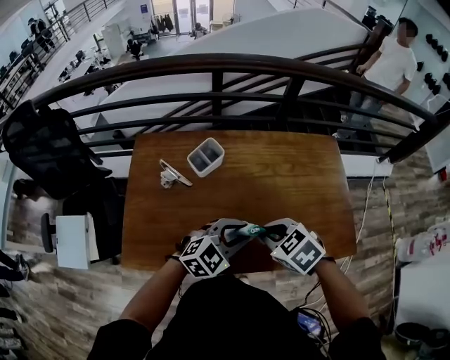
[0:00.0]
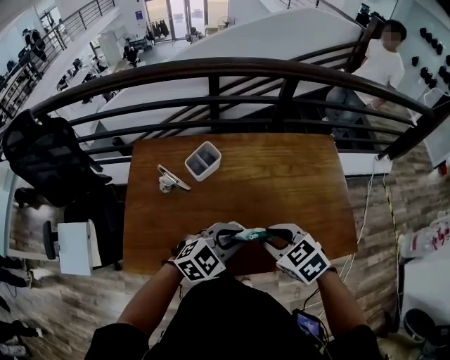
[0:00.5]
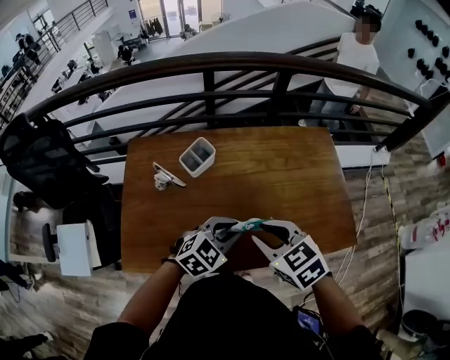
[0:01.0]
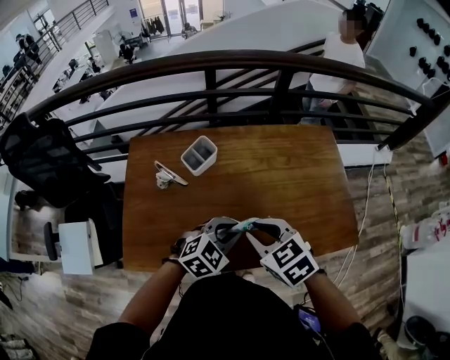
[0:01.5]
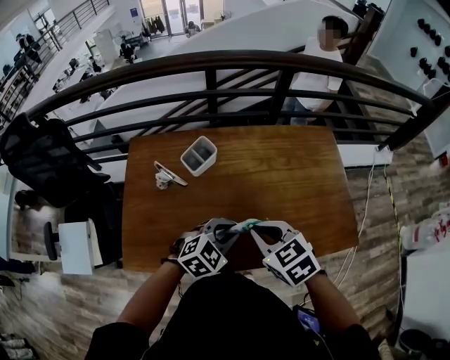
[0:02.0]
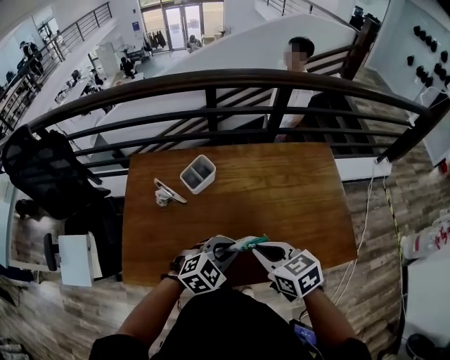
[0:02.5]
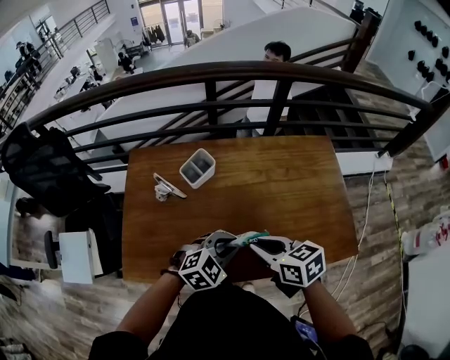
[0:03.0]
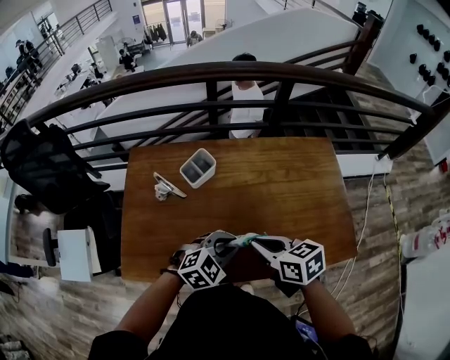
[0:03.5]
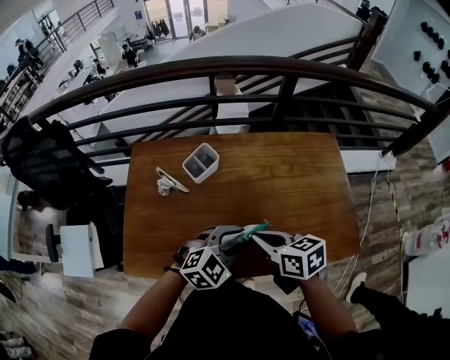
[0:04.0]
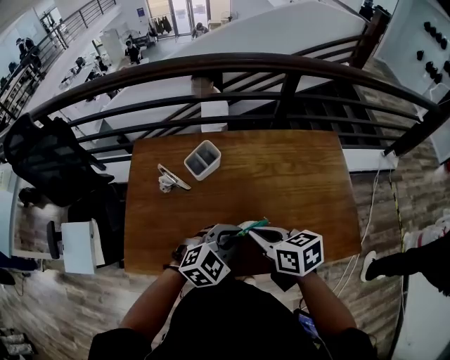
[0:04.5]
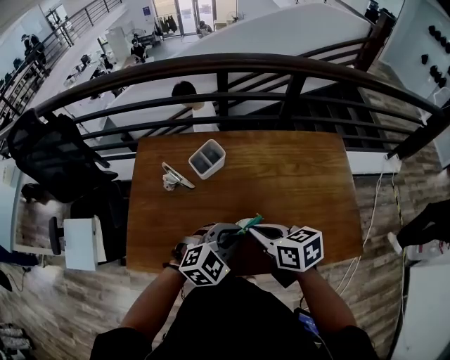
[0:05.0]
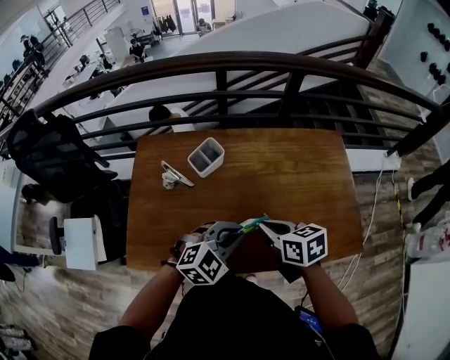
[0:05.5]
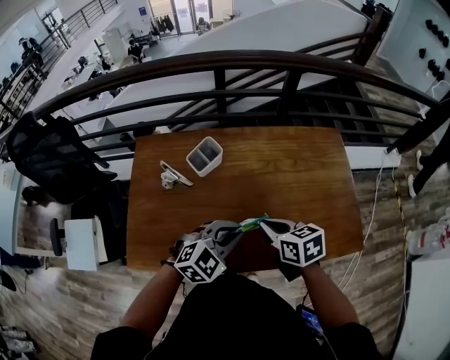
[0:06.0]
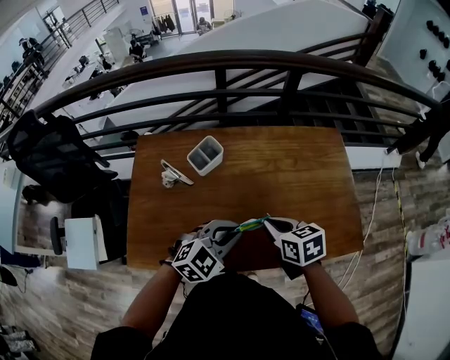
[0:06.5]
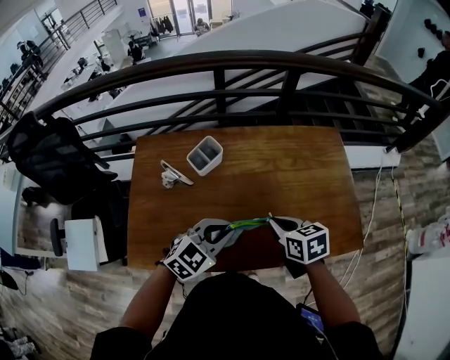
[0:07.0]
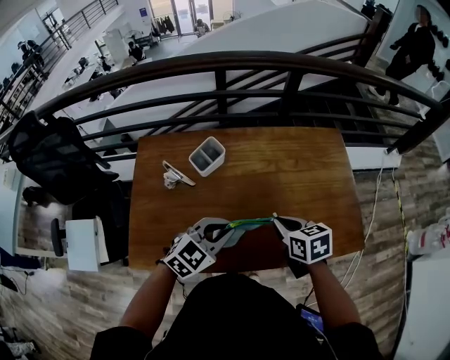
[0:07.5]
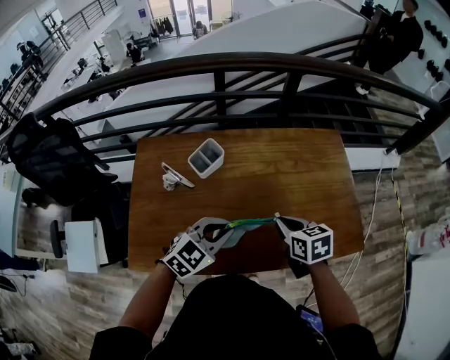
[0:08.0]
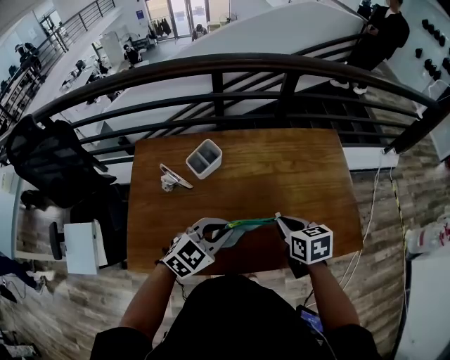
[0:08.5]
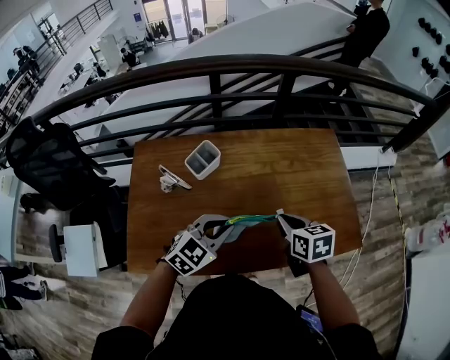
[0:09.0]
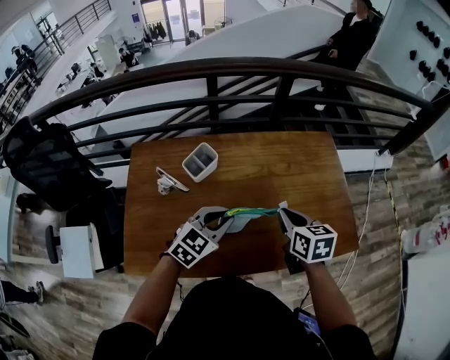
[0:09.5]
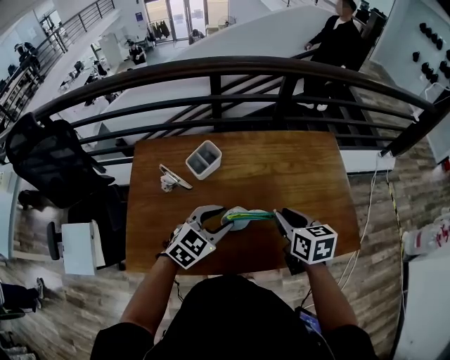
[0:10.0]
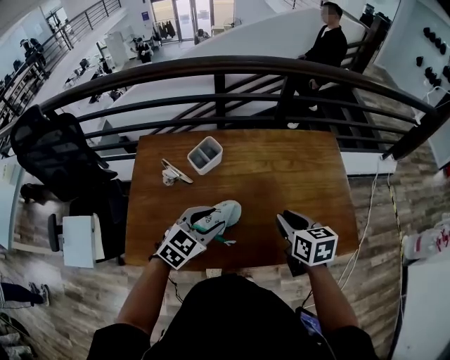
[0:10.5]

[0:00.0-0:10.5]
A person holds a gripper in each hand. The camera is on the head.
0:02.0 to 0:04.0: The right gripper changes its angle by approximately 30 degrees.
0:04.0 to 0:06.5: The right gripper changes place by some 5 cm, while the left gripper closes its fingers.
0:06.5 to 0:08.5: The grippers stay close to where they were, moving slightly.
0:08.5 to 0:10.5: The left gripper opens its fingers.

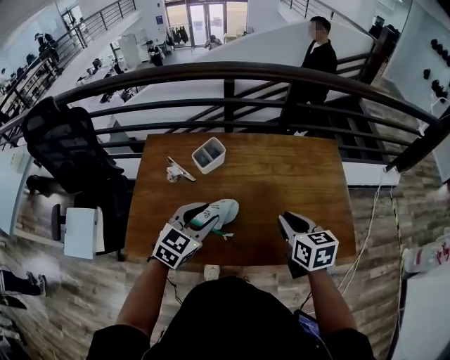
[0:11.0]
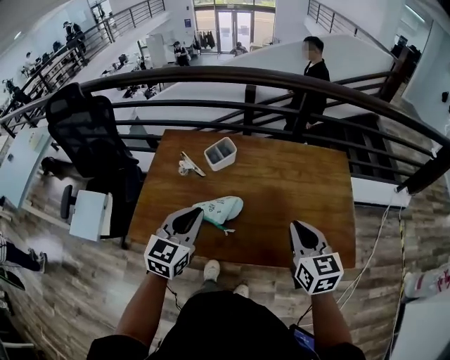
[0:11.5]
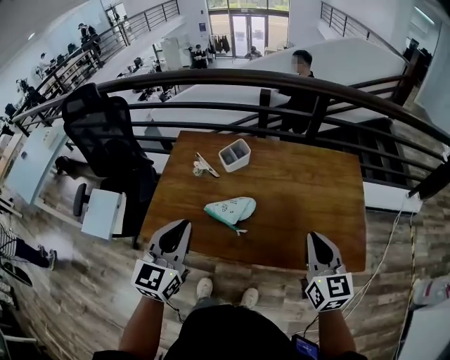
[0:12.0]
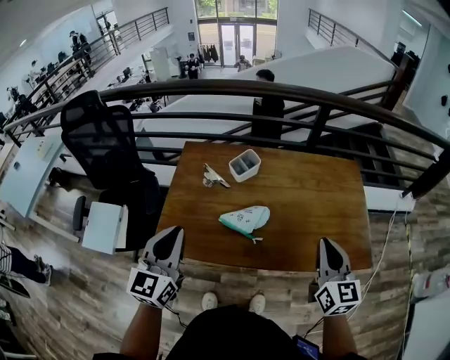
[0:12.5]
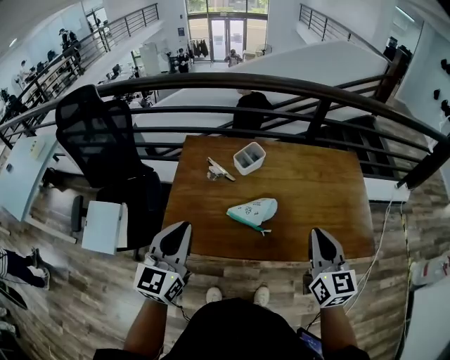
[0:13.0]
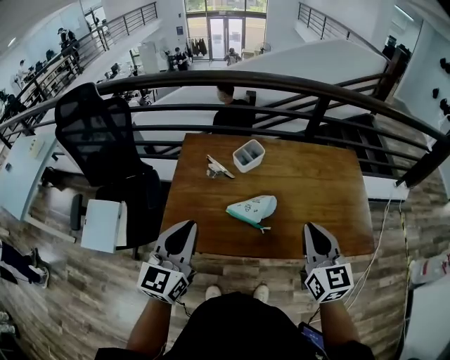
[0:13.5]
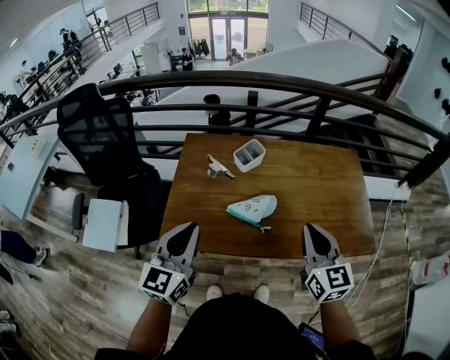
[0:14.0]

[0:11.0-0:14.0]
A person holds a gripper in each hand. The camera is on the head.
0:11.0 to 0:12.5: The left gripper travels to the left, upward and backward by some 25 cm, swivels approximately 40 degrees, and closes its fingers; the right gripper travels backward and upward by about 15 cm, and changes its angle by approximately 30 degrees.
0:12.5 to 0:14.0: The right gripper travels to the left by approximately 10 cm.

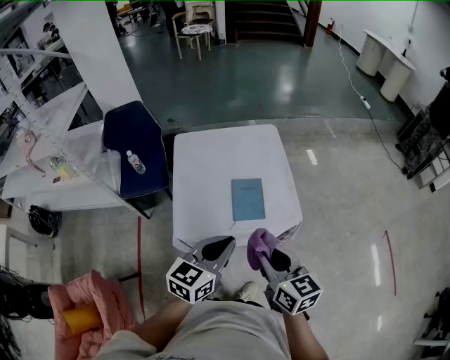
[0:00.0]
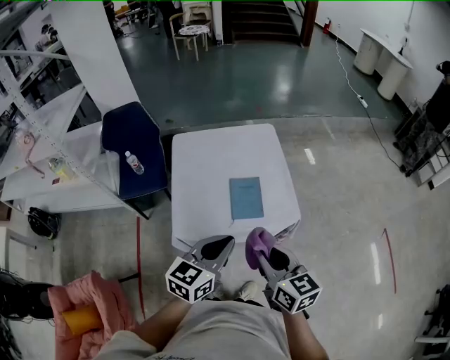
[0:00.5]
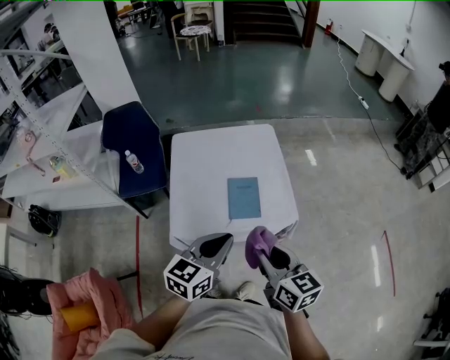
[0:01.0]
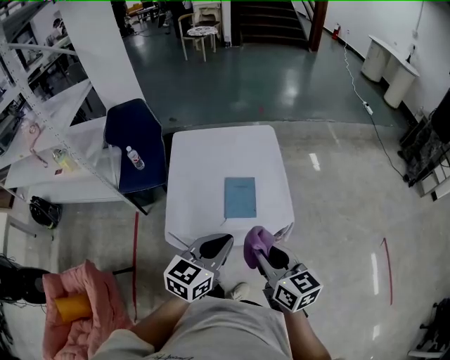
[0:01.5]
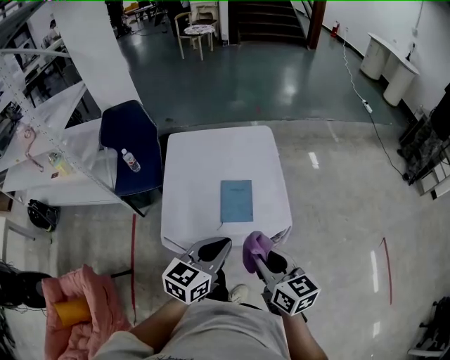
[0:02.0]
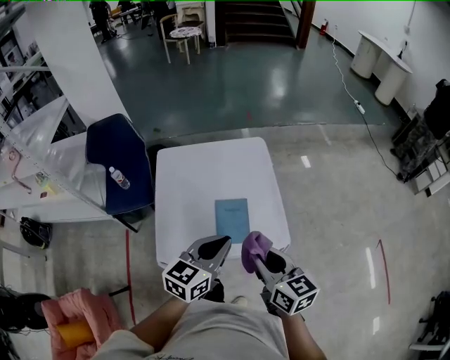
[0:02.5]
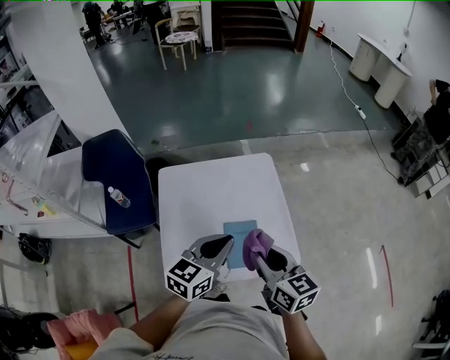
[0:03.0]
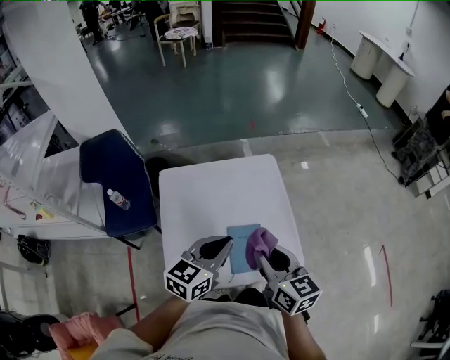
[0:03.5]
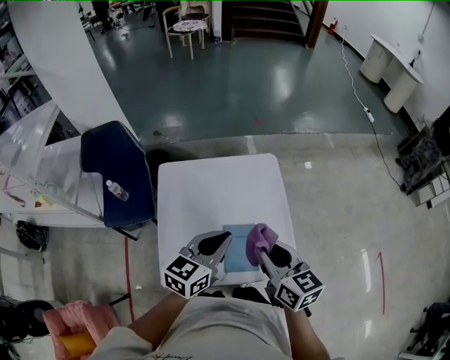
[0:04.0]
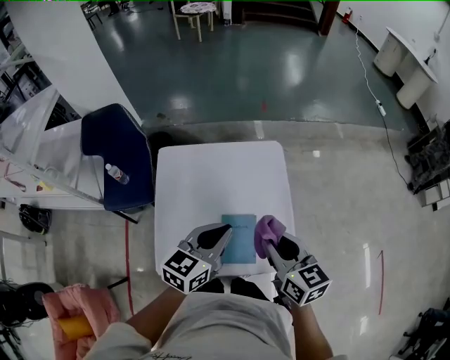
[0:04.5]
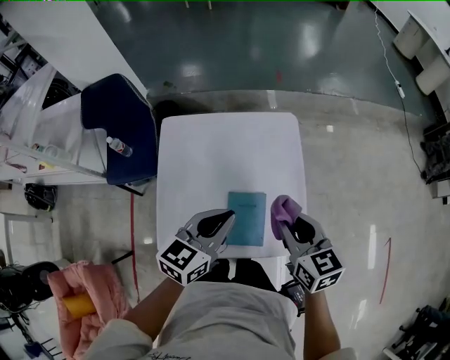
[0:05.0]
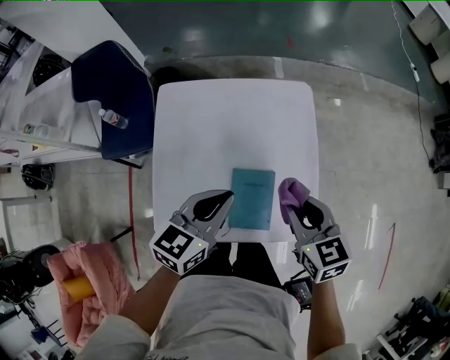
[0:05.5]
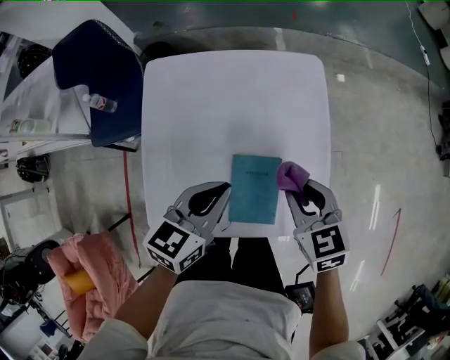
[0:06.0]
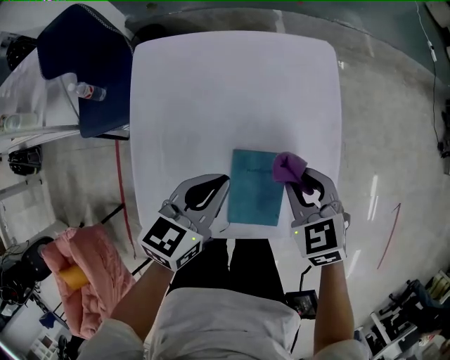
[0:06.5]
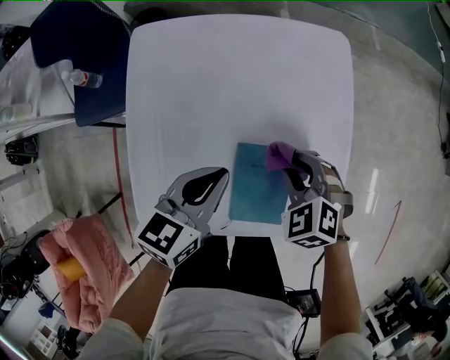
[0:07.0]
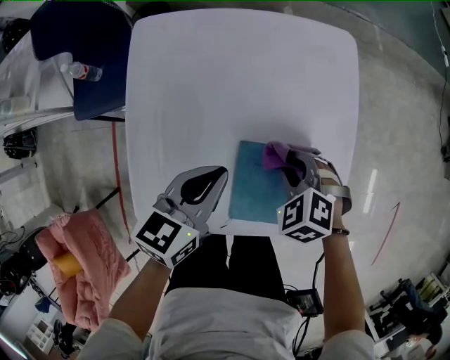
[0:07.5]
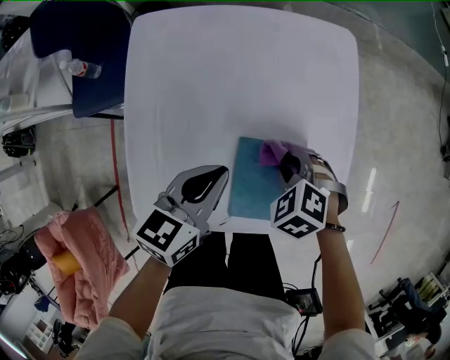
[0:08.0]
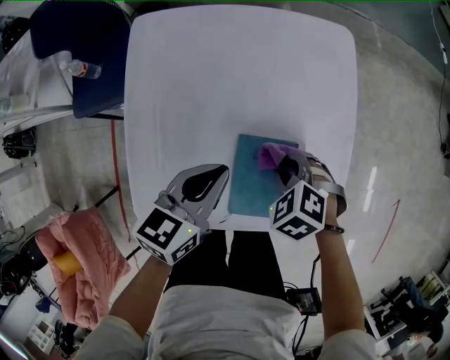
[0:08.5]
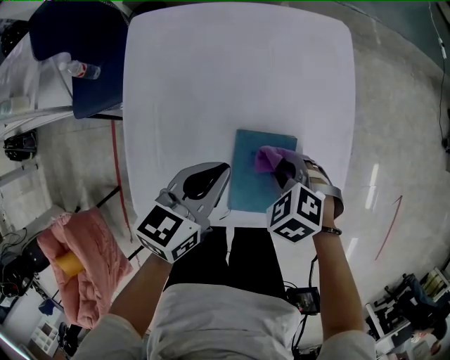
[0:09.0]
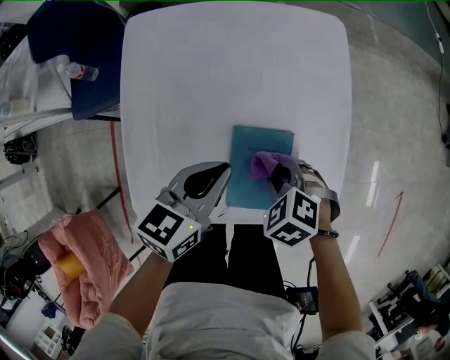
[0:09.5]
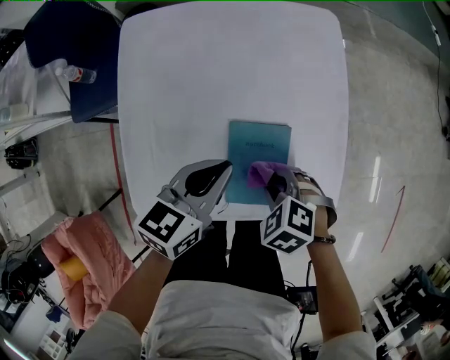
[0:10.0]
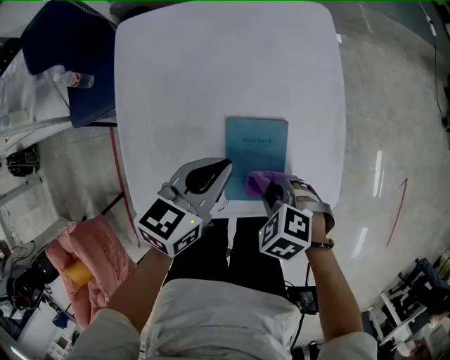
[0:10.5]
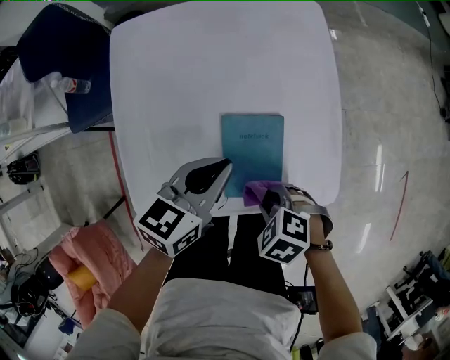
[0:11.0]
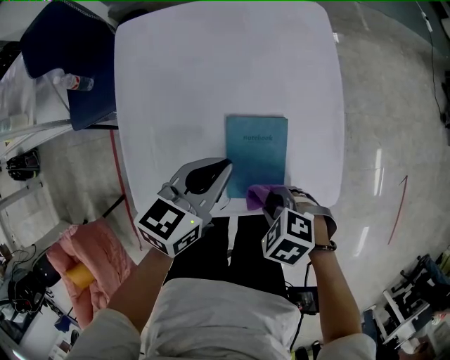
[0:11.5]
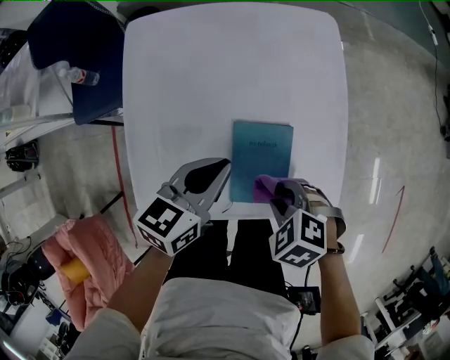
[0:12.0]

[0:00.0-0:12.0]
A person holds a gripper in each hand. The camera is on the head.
0:00.0 to 0:02.0: The grippers both shift to the right by roughly 5 cm.
0:02.0 to 0:04.0: The grippers both shift forward by roughly 25 cm.
0:04.0 to 0:06.0: Both grippers travel together downward, approximately 15 cm. The right gripper rotates approximately 30 degrees.
0:06.0 to 0:08.0: The left gripper moves downward, some 10 cm. The right gripper heads downward, covering roughly 15 cm, and angles its fingers downward, by approximately 30 degrees.
0:08.0 to 0:10.0: The right gripper shifts by about 10 cm.

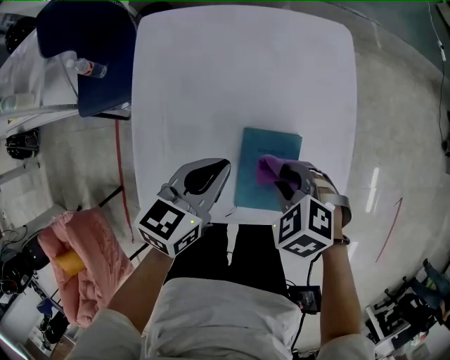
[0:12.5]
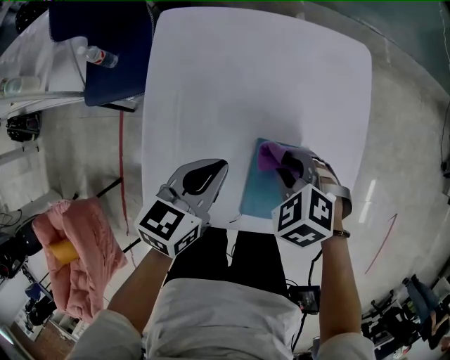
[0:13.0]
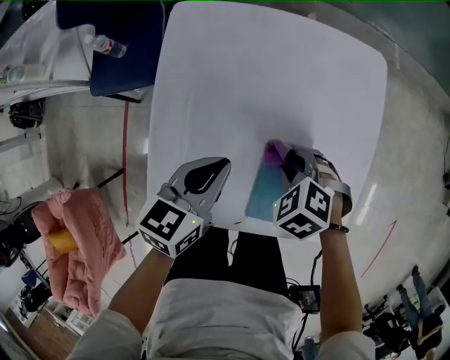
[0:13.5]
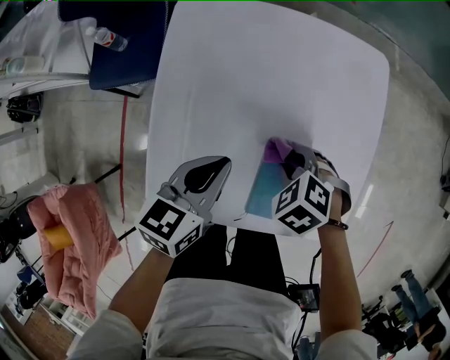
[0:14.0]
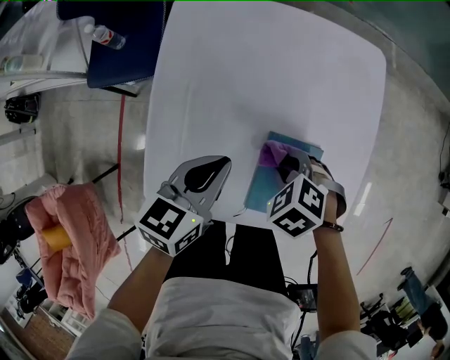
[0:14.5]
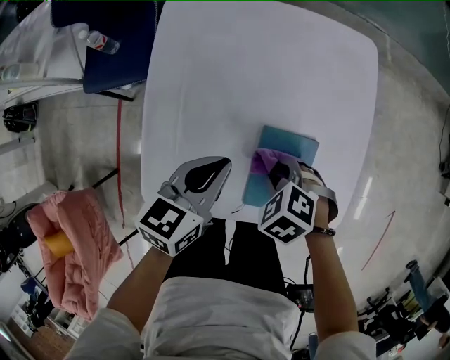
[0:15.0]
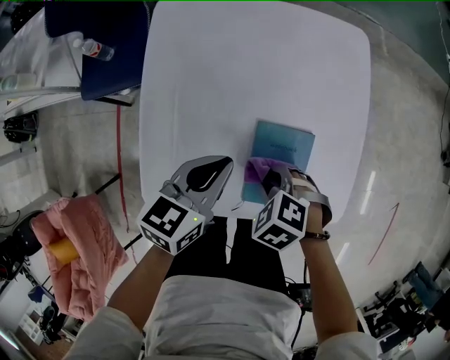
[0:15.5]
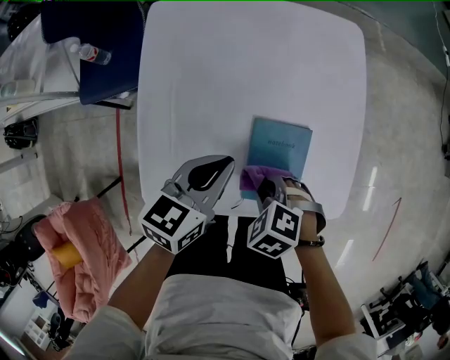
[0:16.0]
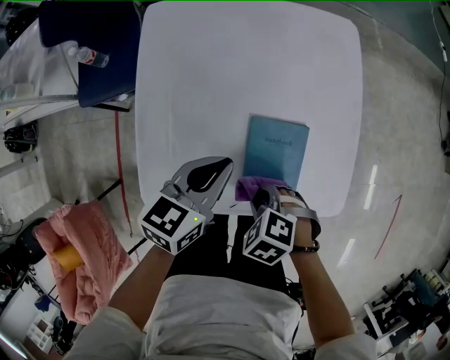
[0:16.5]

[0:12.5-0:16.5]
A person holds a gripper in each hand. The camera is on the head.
0:12.5 to 0:14.5: The right gripper ends up approximately 5 cm from where it was, while the left gripper moves about 5 cm.
0:14.5 to 0:16.5: The right gripper changes place by some 15 cm, while the left gripper changes place by some 5 cm.
